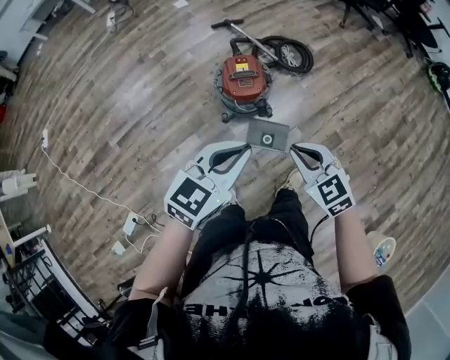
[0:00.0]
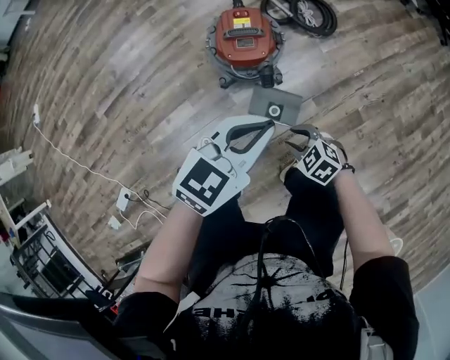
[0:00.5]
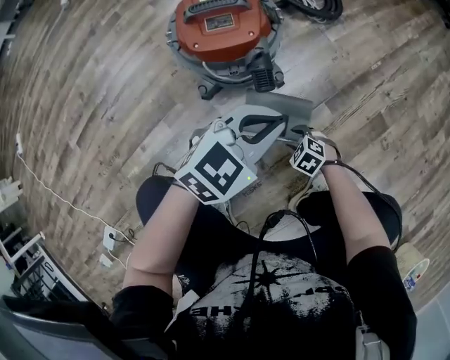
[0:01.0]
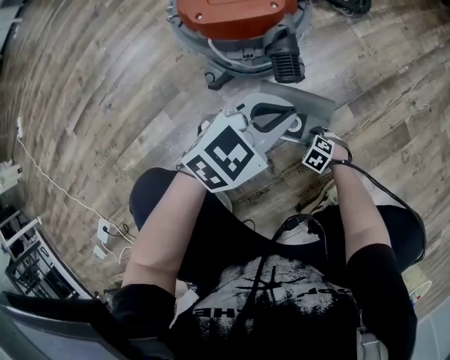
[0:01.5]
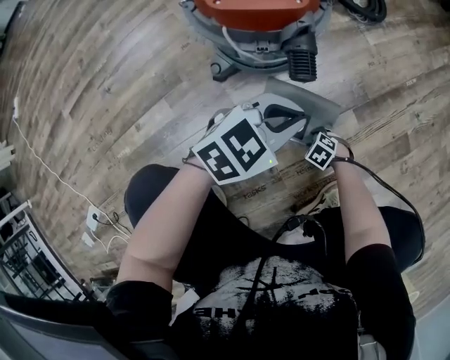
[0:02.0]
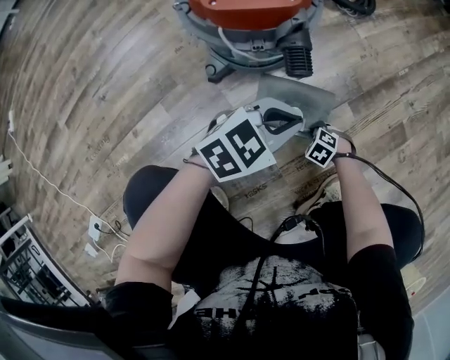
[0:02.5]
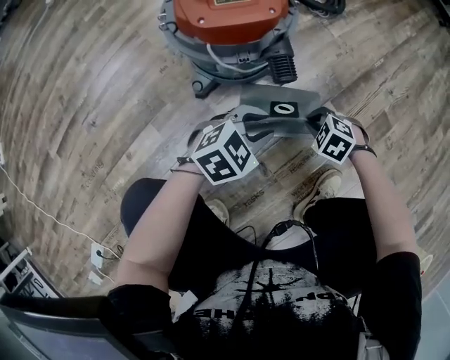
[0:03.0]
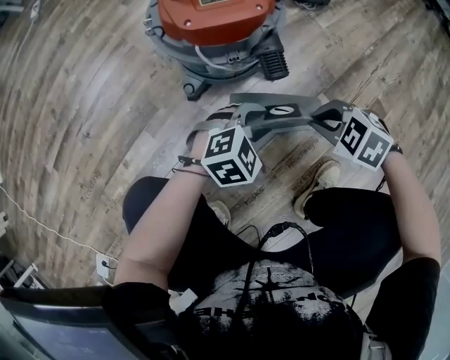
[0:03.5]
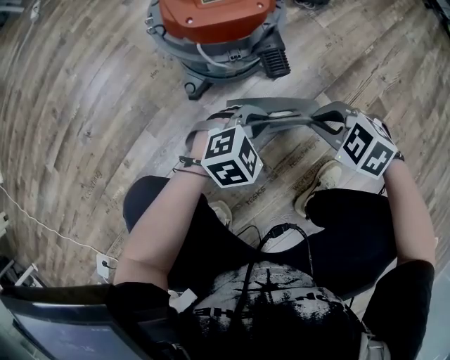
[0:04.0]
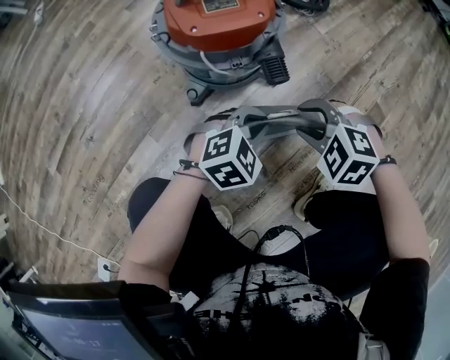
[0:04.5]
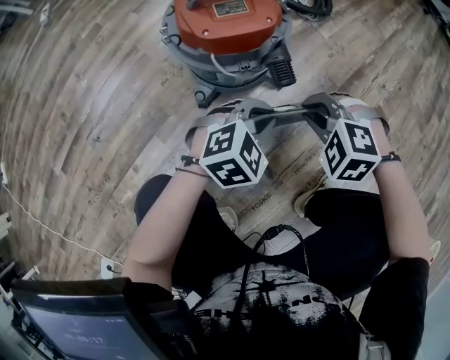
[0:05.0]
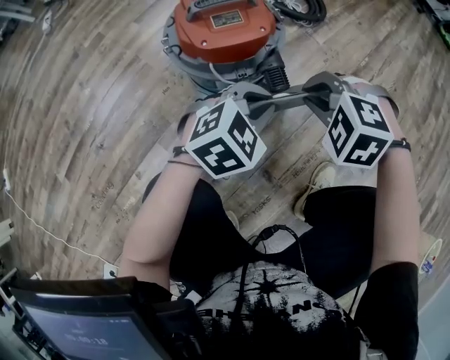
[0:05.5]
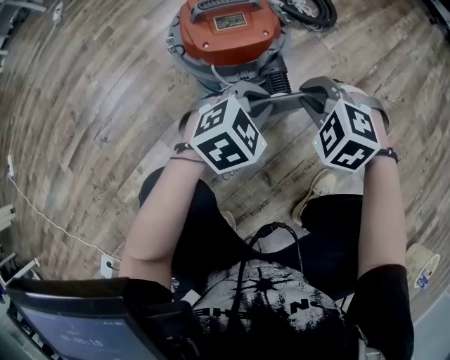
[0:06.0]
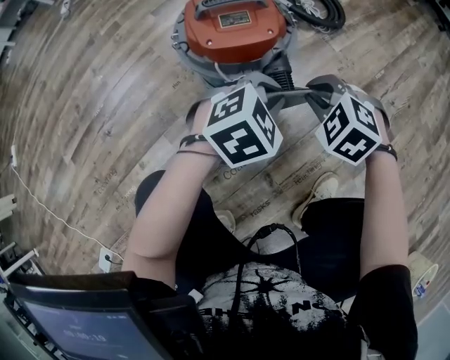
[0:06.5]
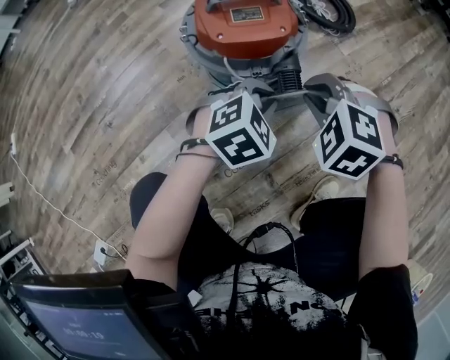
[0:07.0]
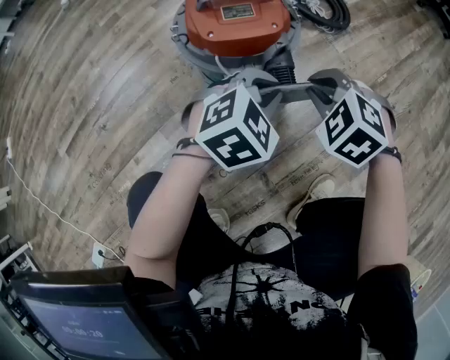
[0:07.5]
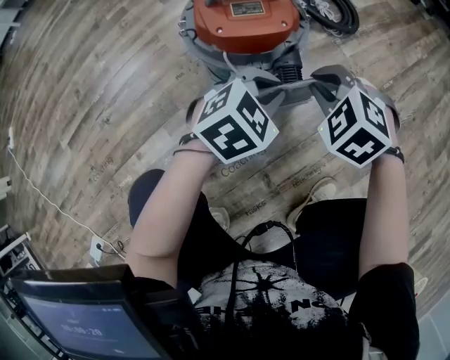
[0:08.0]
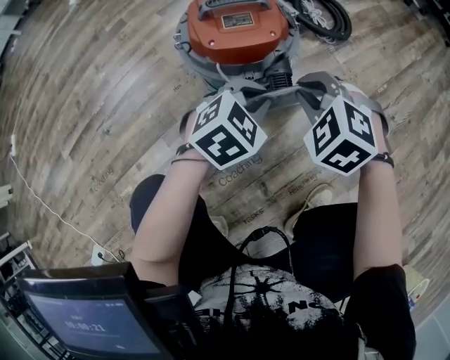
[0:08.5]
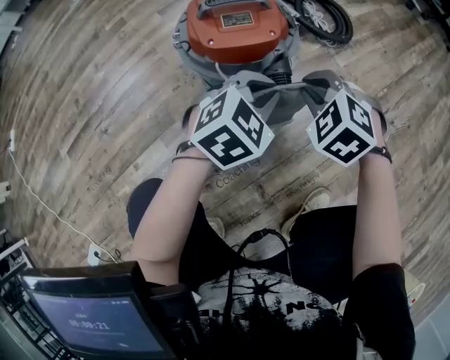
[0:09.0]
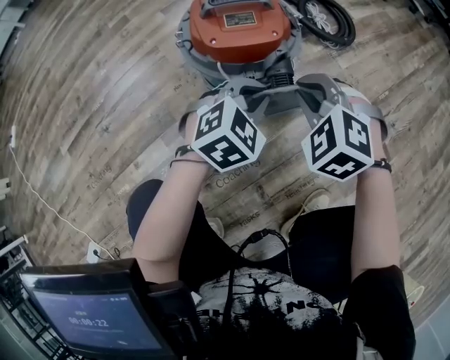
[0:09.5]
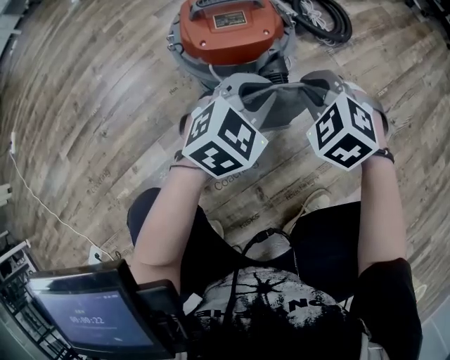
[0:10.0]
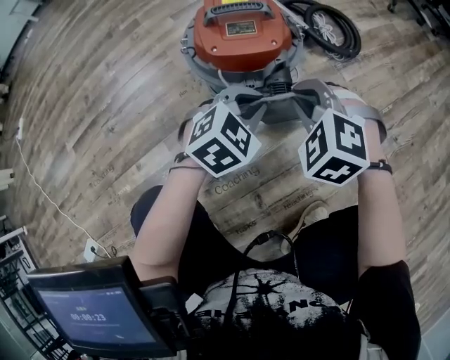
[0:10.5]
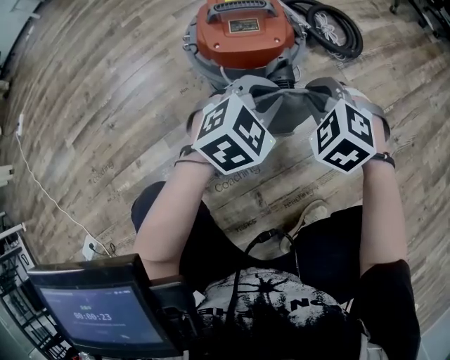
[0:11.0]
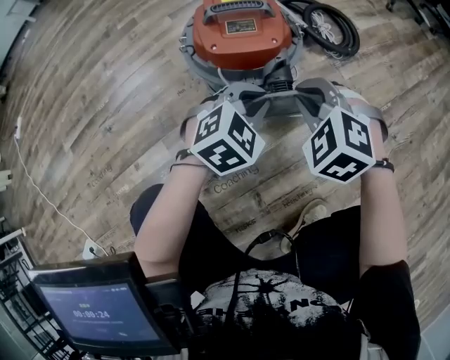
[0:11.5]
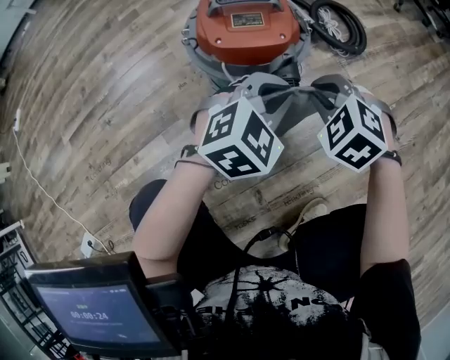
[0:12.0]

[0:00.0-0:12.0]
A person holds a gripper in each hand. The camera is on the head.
0:00.0 to 0:02.0: The two grippers go approximately 70 cm downward. The left gripper swivels roughly 20 degrees; the right gripper tilts its fingers some 40 degrees downward, and opens its fingers.
0:02.0 to 0:04.0: The right gripper goes roughly 30 cm upward, and closes up; the left gripper moves downward, roughly 5 cm, changes its angle by approximately 30 degrees, and opens, then closes once more.
0:04.0 to 0:06.0: The right gripper ends up some 15 cm from where it was, swivels some 30 degrees, and opens and closes again, while the left gripper travels upward by roughly 10 cm.
0:06.0 to 0:08.0: The grippers move only a little.
0:08.0 to 0:12.0: The grippers make only small movements.

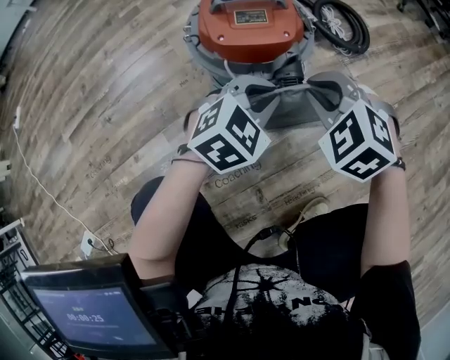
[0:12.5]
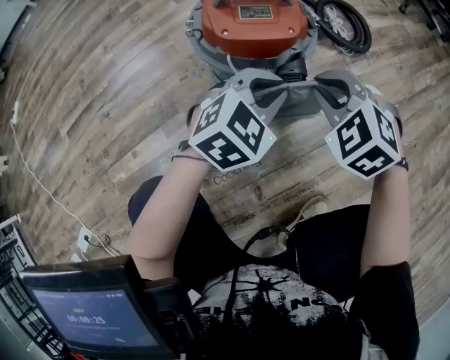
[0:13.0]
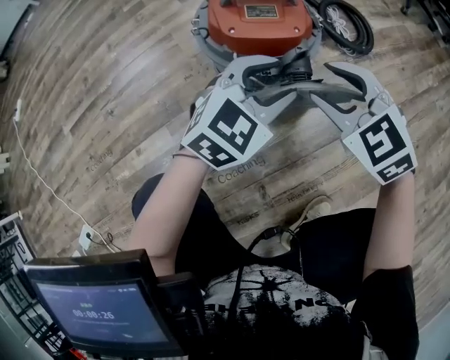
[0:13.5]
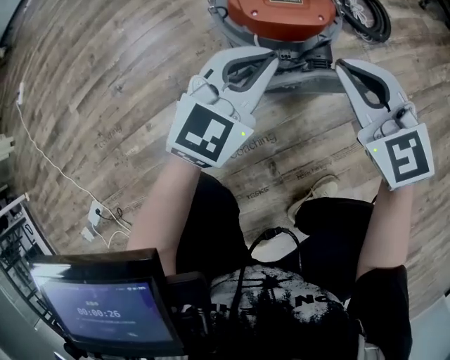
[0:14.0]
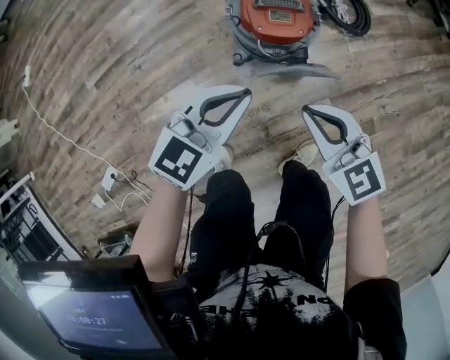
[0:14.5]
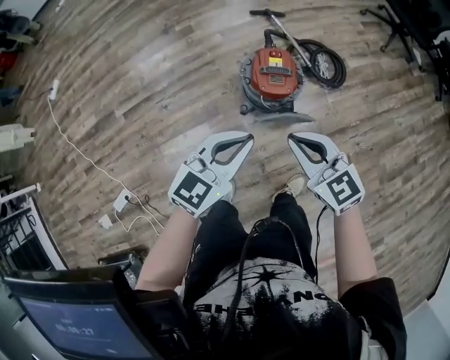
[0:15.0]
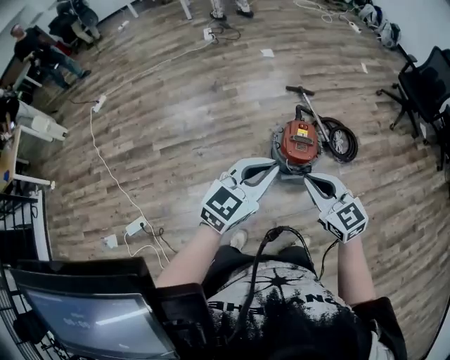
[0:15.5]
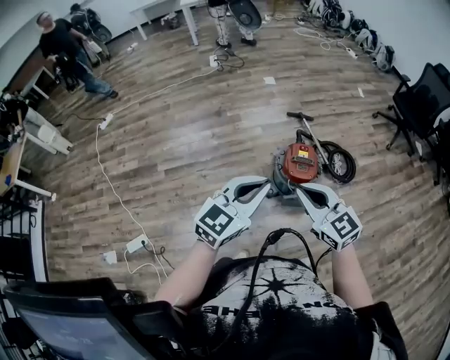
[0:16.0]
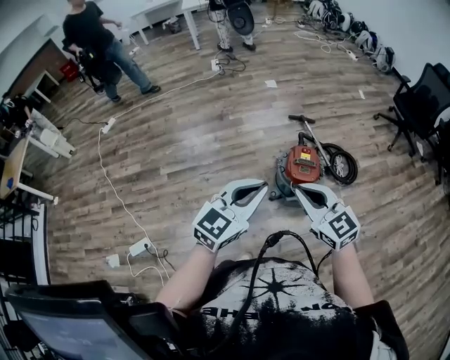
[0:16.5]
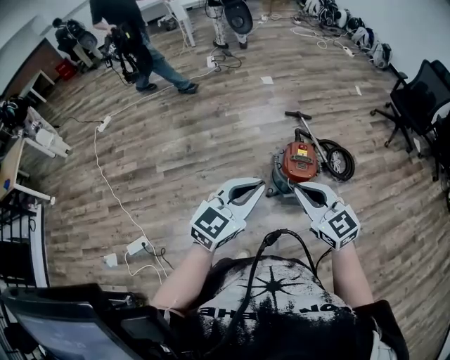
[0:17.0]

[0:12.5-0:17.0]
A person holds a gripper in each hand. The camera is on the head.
0:12.5 to 0:14.5: The left gripper shifts about 30 cm upward and to the left, changes its angle by approximately 30 degrees, and opens, then closes again, while the right gripper travels upward and backward by about 30 cm, rotates some 40 degrees, and opens, then closes again.
0:14.5 to 0:17.0: The right gripper travels upward and to the left by about 35 cm. The left gripper moves upward, approximately 35 cm.

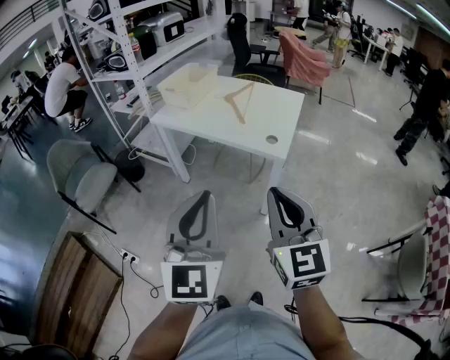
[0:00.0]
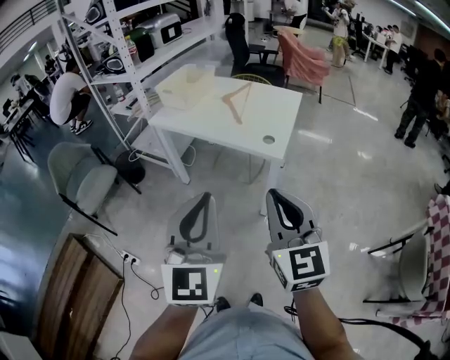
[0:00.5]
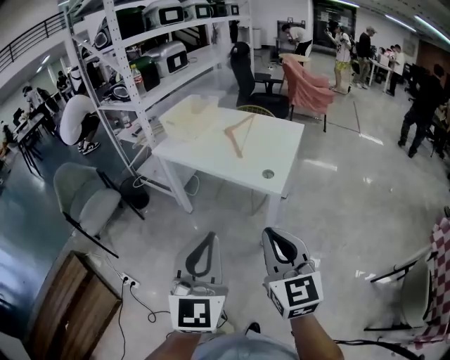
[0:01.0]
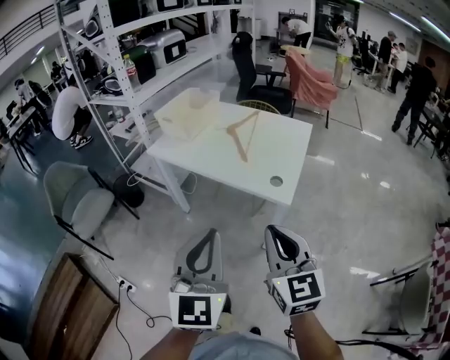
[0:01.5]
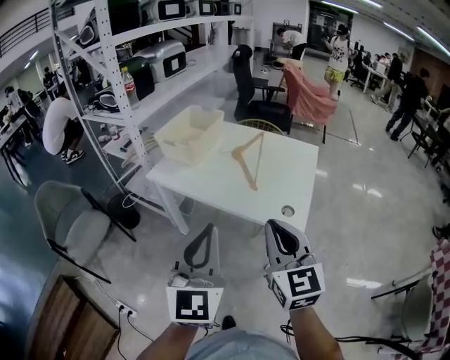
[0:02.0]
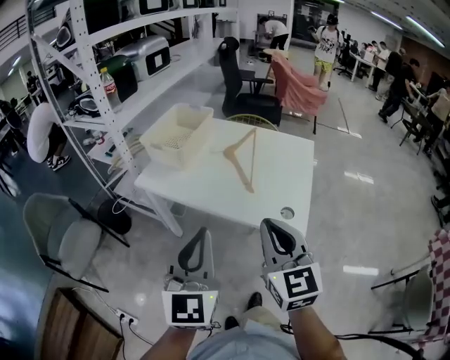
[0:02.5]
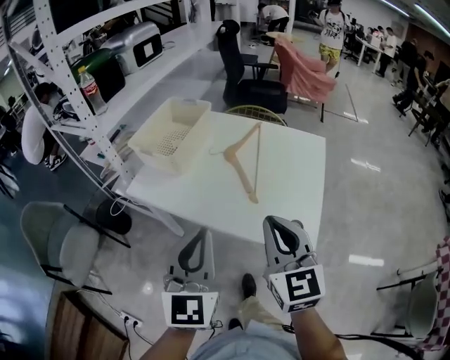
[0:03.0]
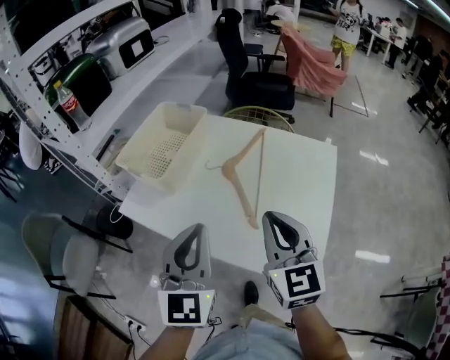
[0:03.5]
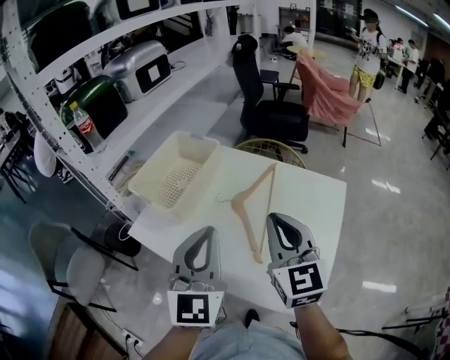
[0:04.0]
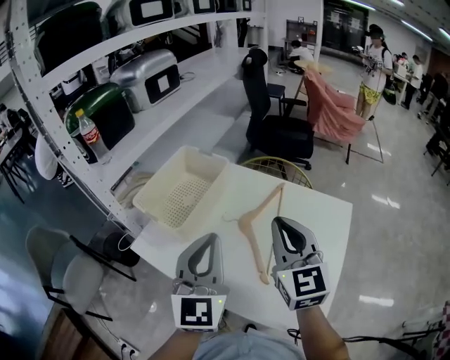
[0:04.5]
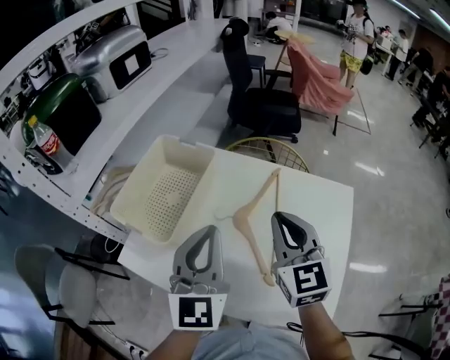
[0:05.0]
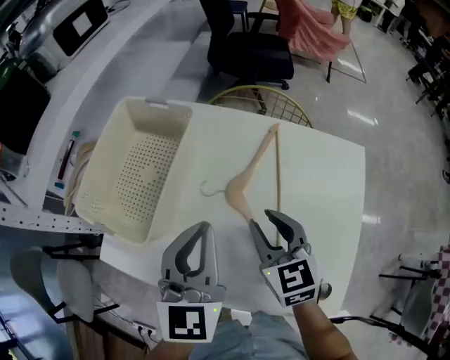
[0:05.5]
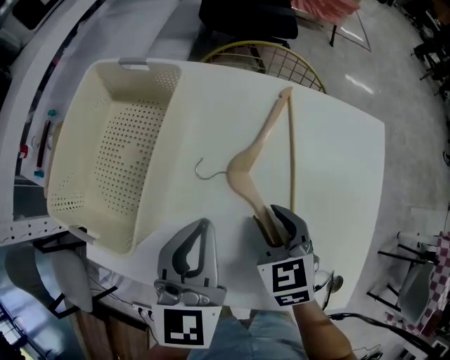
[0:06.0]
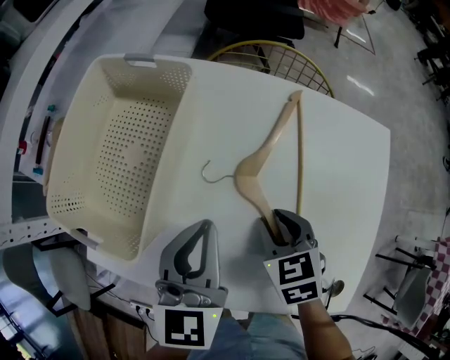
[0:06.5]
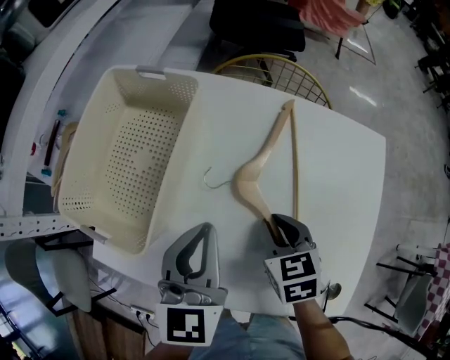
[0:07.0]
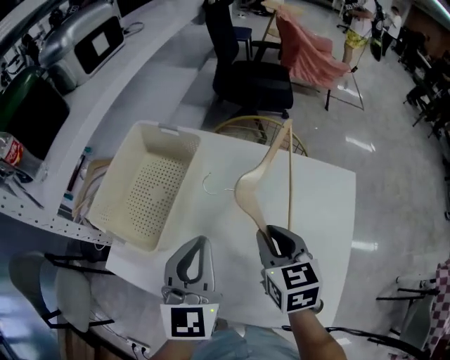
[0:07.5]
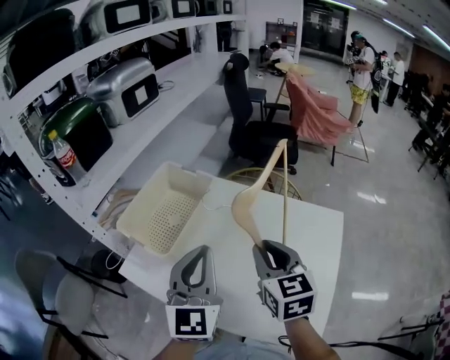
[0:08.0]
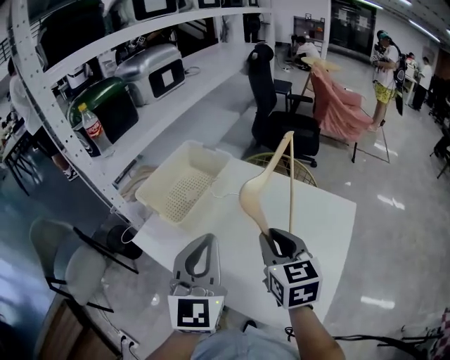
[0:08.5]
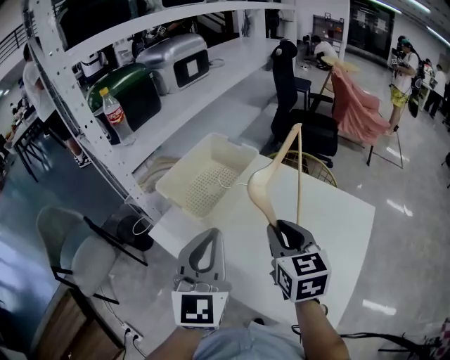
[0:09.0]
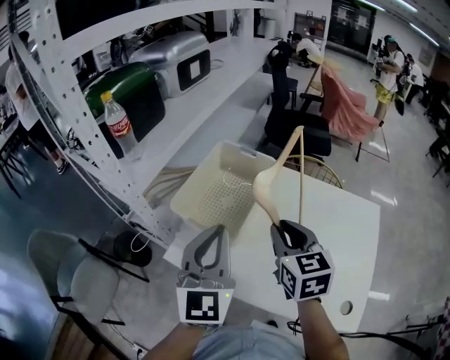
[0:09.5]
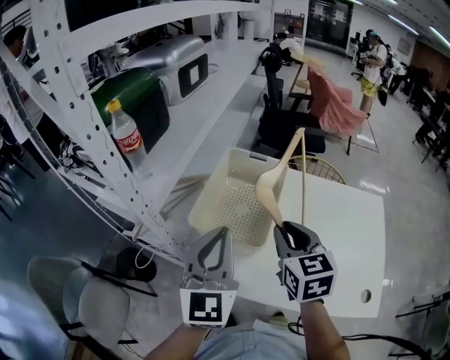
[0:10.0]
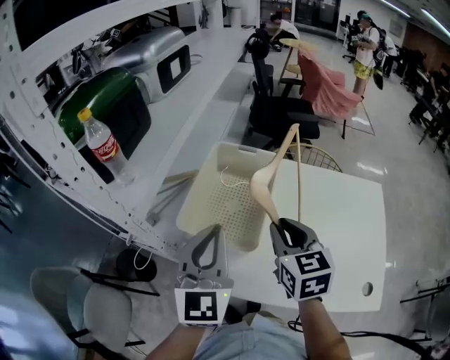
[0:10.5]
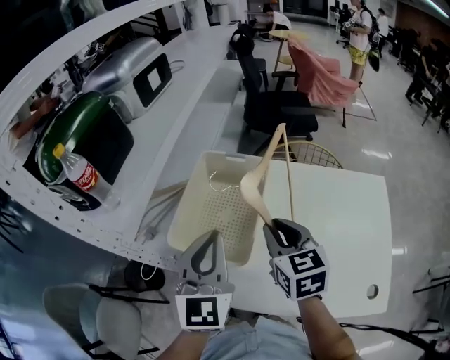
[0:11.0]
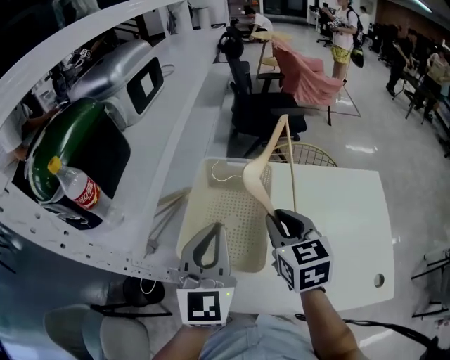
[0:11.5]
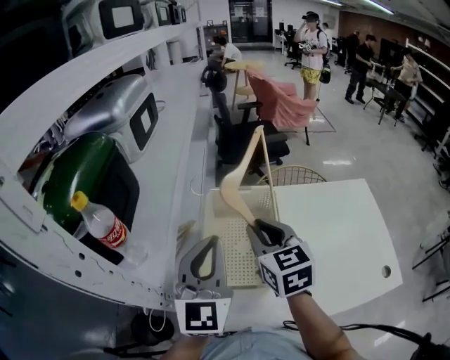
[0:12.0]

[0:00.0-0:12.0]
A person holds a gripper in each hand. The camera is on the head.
0:00.0 to 0:02.0: Both grippers travel together forward, about 25 cm.
0:02.0 to 0:04.0: The grippers both shift forward by approximately 35 cm.
0:04.0 to 0:06.0: Both grippers travel together downward and forward, approximately 25 cm. The left gripper swivels roughly 30 degrees; the right gripper points its fingers approximately 40 degrees further downward, and opens its fingers.
0:06.0 to 0:08.0: Both grippers move upward, some 20 cm. The right gripper turns by about 20 degrees. The left gripper changes its angle by some 30 degrees.
0:08.0 to 0:10.0: Both grippers move to the left, roughly 25 cm.
0:10.0 to 0:12.0: The left gripper shifts some 10 cm forward, while the right gripper heads forward and to the left, covering about 15 cm.
